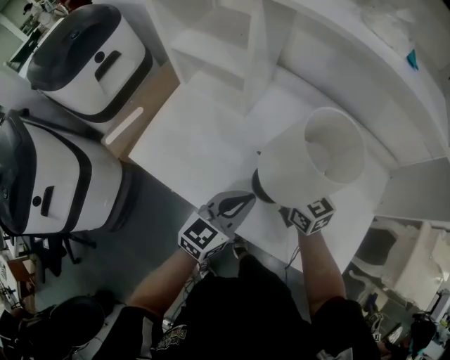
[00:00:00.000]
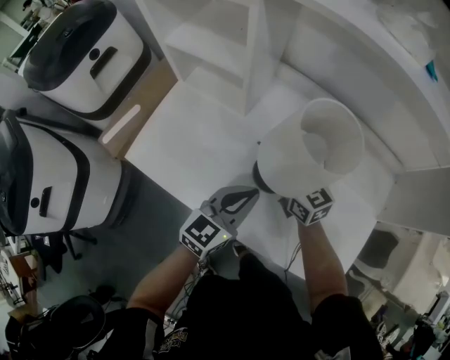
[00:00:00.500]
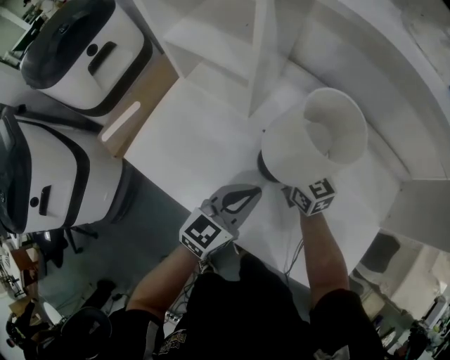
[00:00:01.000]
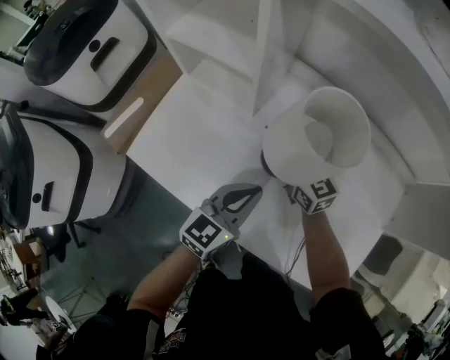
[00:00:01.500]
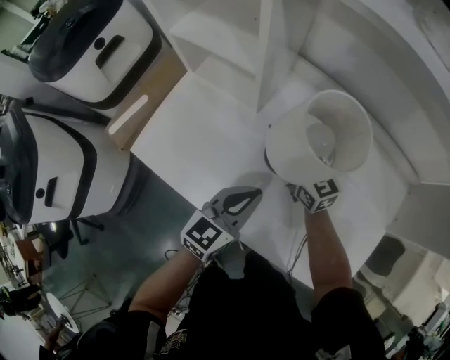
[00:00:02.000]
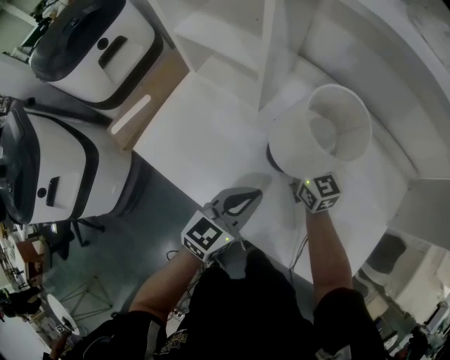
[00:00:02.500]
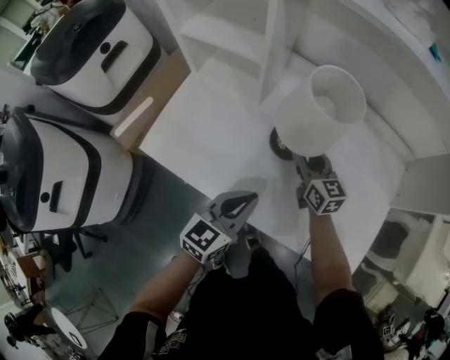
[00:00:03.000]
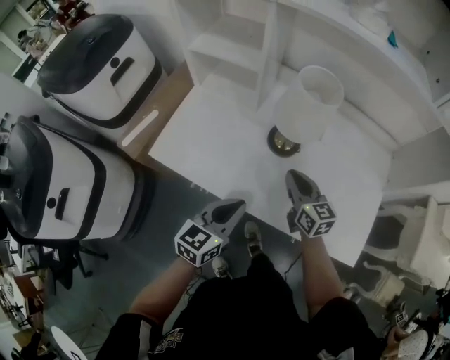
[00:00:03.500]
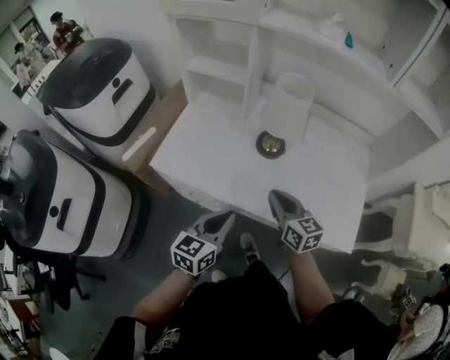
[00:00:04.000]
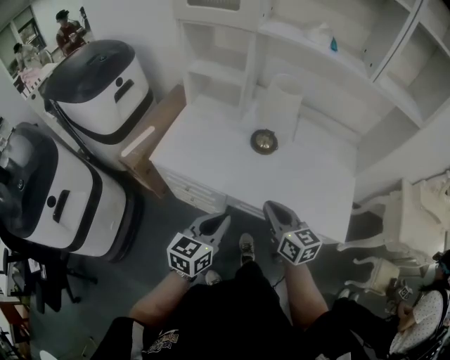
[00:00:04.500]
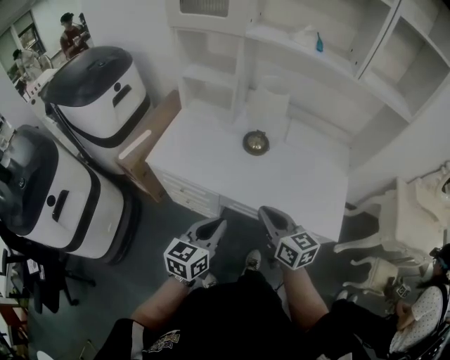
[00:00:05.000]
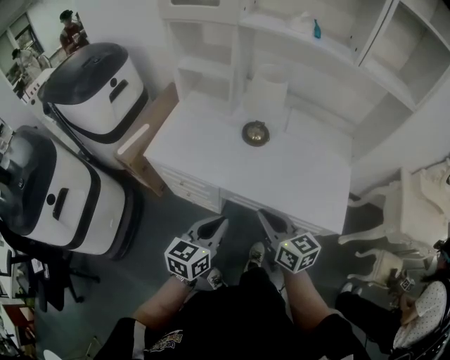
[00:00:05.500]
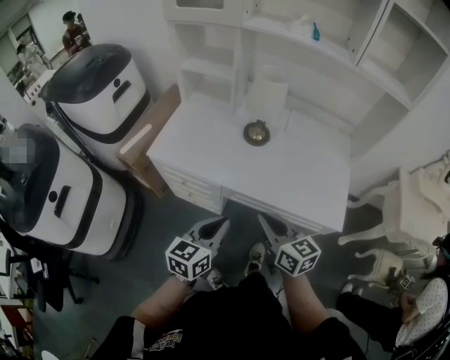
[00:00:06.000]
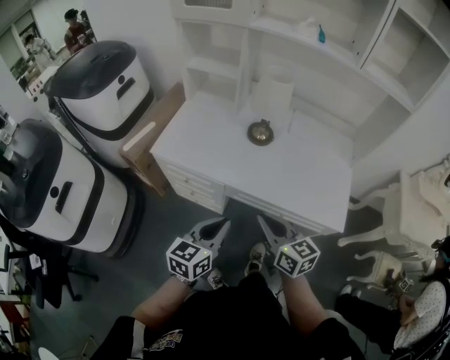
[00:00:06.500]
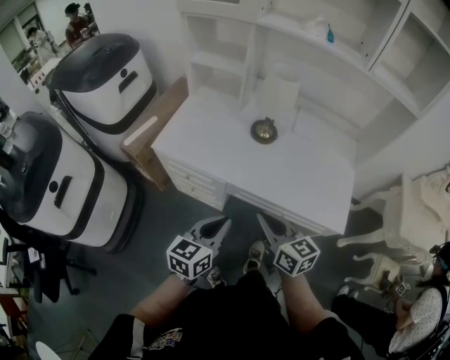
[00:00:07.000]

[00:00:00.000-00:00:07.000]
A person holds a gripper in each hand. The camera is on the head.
00:00:00.000 to 00:00:02.000: The left gripper moves forward, about 5 cm. The right gripper travels forward and downward by some 10 cm.
00:00:02.000 to 00:00:03.500: The right gripper travels backward by about 20 cm; the left gripper shifts some 15 cm backward and to the left.
00:00:03.500 to 00:00:05.000: The right gripper goes some 25 cm backward and upward. The left gripper travels backward by some 15 cm.
00:00:05.000 to 00:00:07.000: The right gripper shifts by some 5 cm.

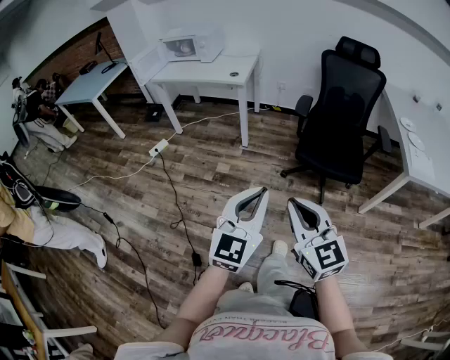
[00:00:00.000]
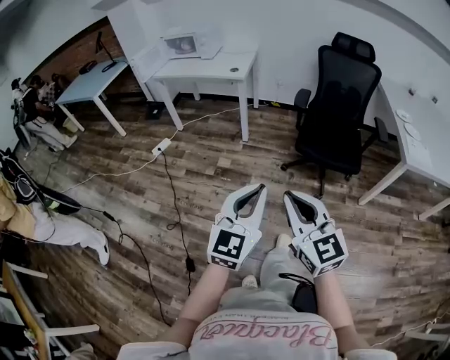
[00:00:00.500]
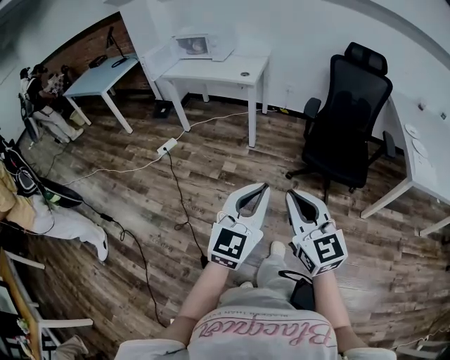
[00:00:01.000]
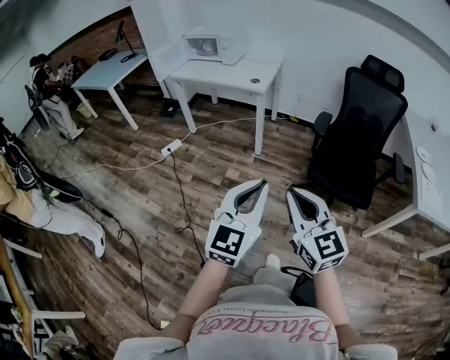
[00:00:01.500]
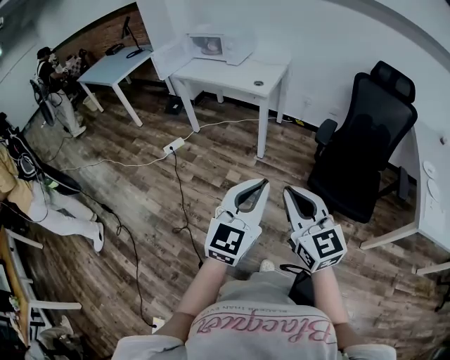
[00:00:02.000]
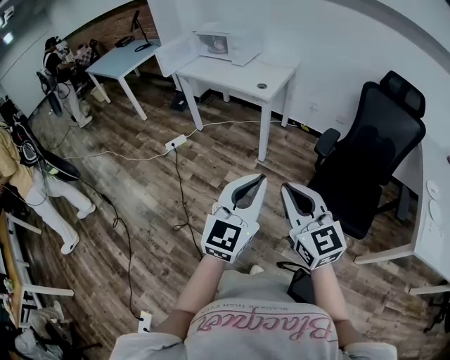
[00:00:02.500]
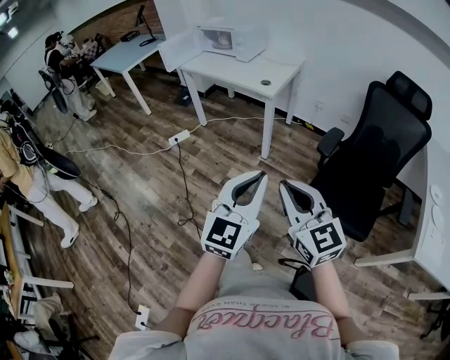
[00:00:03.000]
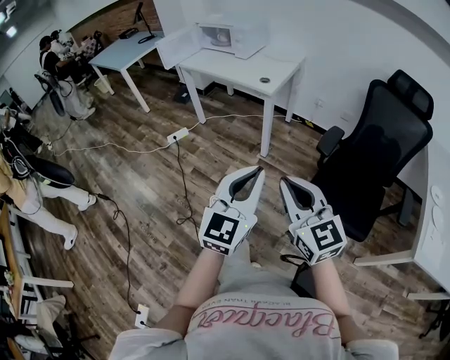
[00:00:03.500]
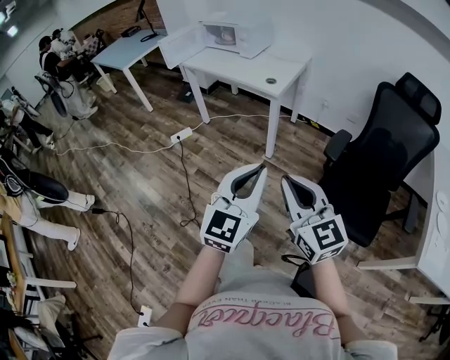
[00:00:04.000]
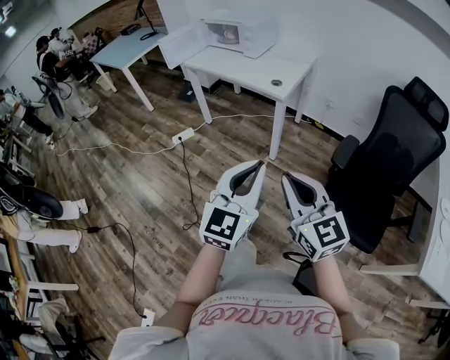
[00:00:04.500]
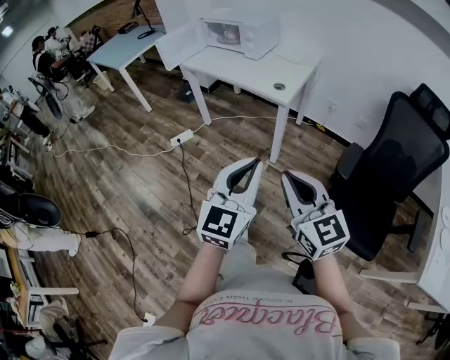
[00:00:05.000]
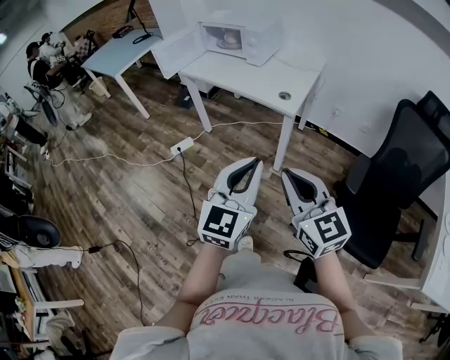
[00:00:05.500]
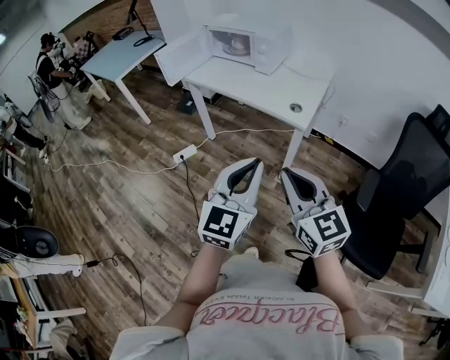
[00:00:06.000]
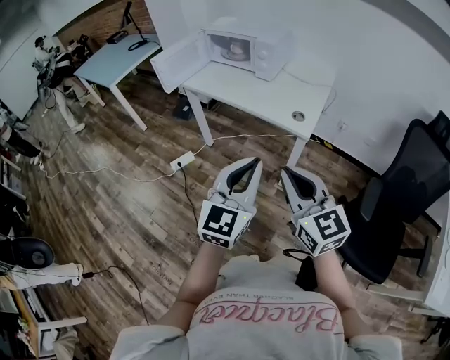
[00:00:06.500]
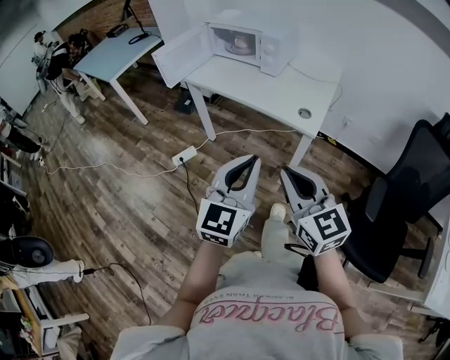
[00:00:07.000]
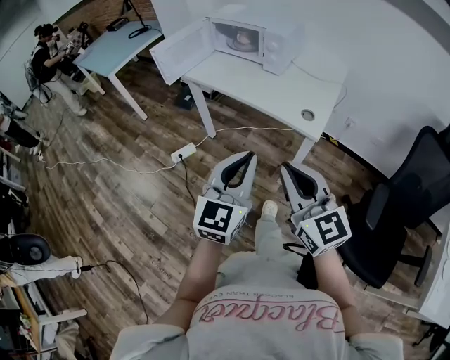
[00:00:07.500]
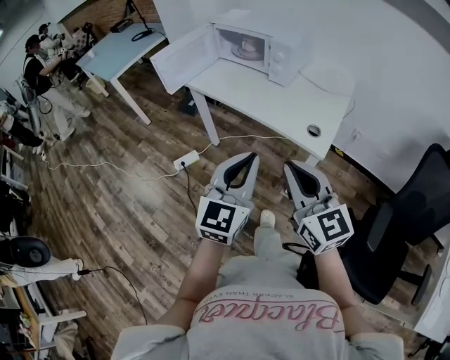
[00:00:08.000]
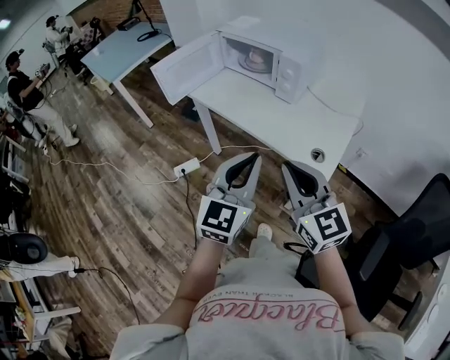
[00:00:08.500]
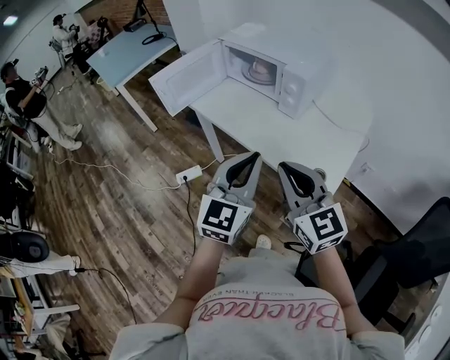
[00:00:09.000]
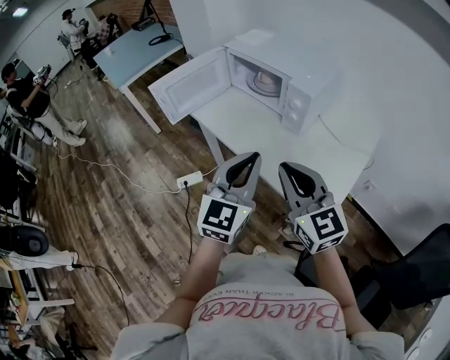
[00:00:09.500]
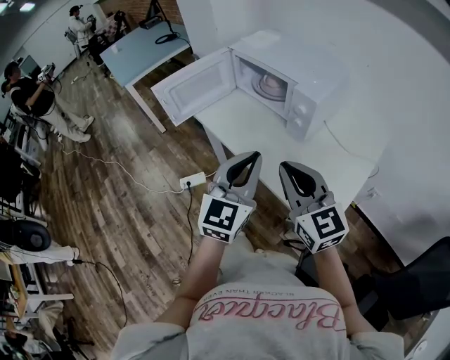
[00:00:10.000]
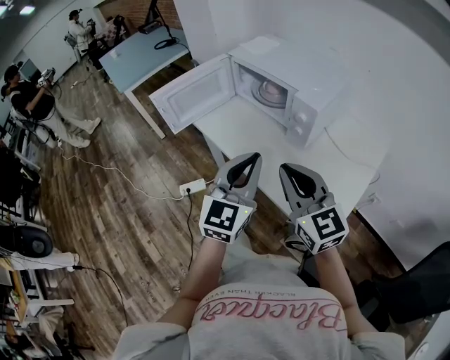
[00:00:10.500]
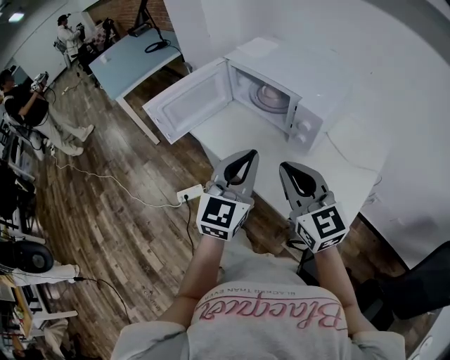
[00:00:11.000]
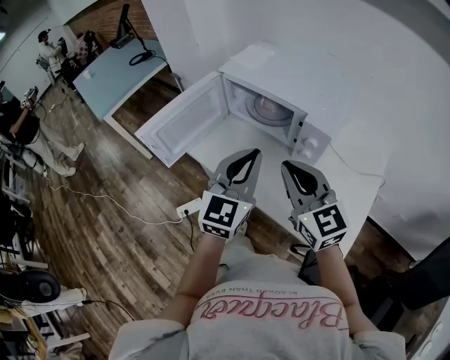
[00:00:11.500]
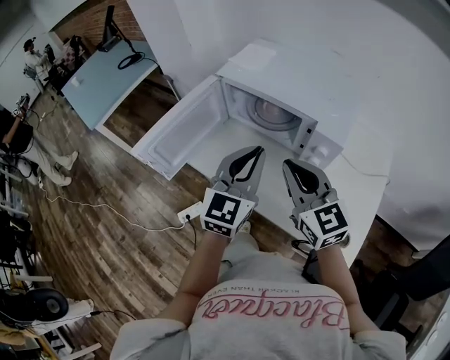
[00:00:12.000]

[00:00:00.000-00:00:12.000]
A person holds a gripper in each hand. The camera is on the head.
00:00:00.000 to 00:00:02.000: Both grippers move forward, approximately 15 cm.
00:00:02.000 to 00:00:04.000: The grippers both shift forward by some 10 cm.
00:00:04.000 to 00:00:06.000: Both grippers travel together forward and to the left, roughly 30 cm.
00:00:06.000 to 00:00:08.000: Both grippers move forward, some 20 cm.
00:00:08.000 to 00:00:10.000: The grippers both shift forward by roughly 25 cm.
00:00:10.000 to 00:00:12.000: The grippers both shift forward by about 20 cm.

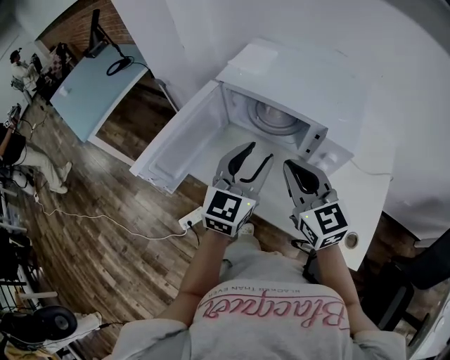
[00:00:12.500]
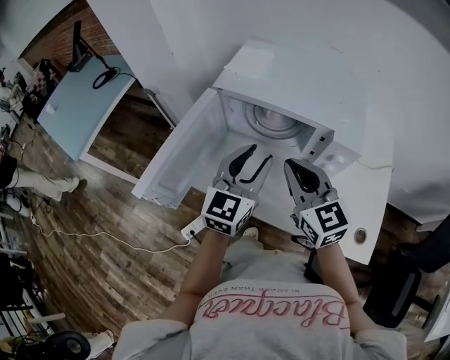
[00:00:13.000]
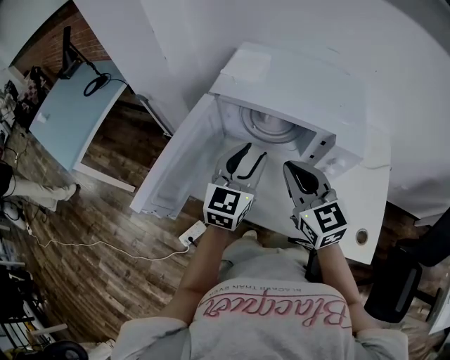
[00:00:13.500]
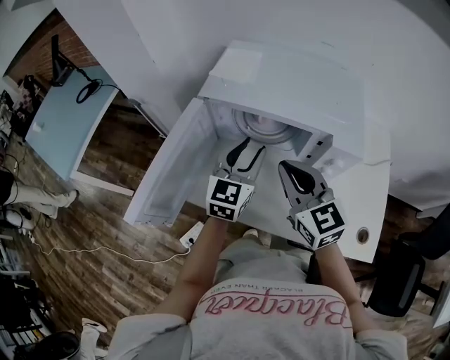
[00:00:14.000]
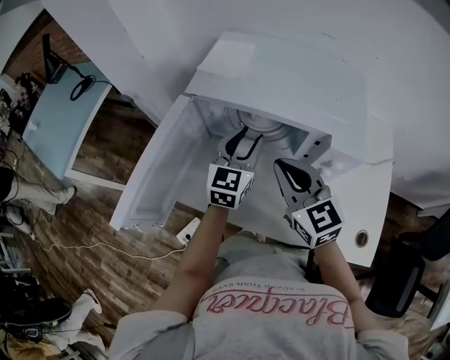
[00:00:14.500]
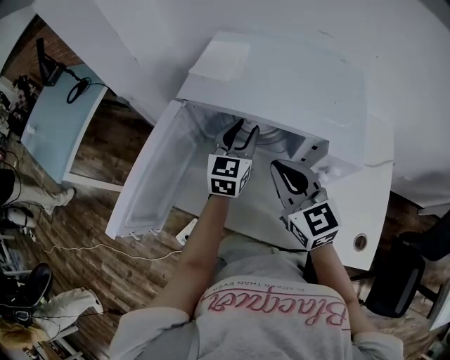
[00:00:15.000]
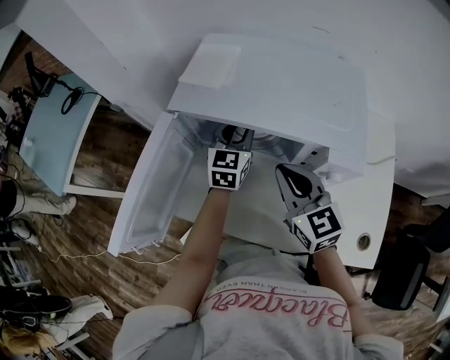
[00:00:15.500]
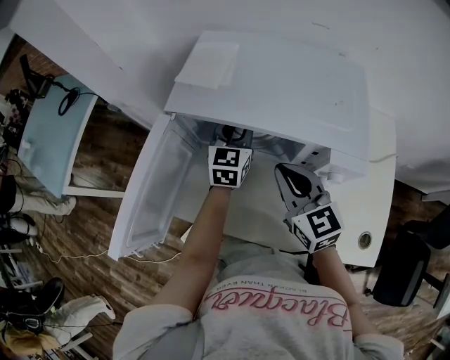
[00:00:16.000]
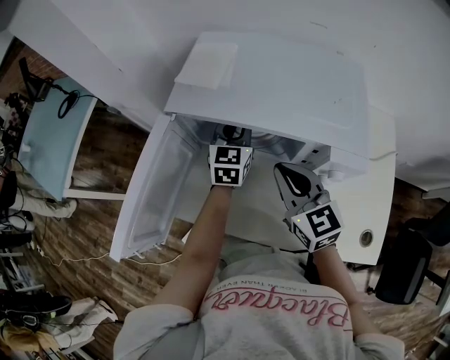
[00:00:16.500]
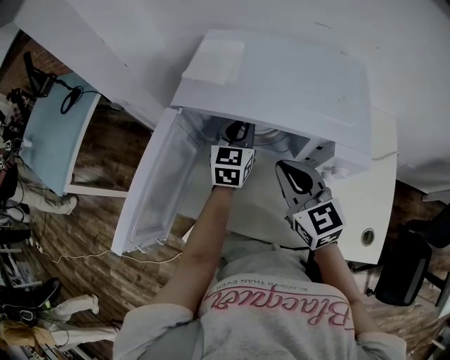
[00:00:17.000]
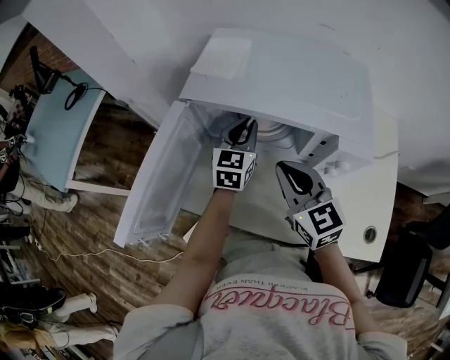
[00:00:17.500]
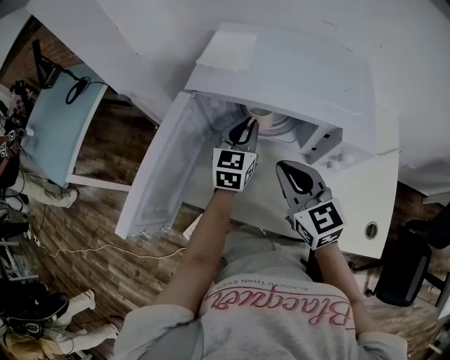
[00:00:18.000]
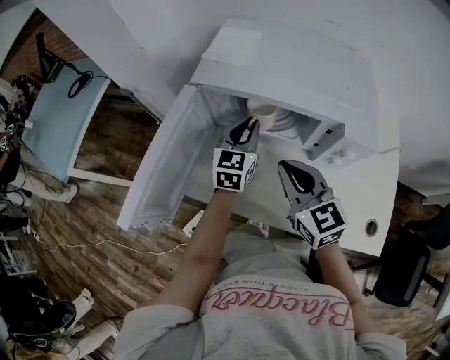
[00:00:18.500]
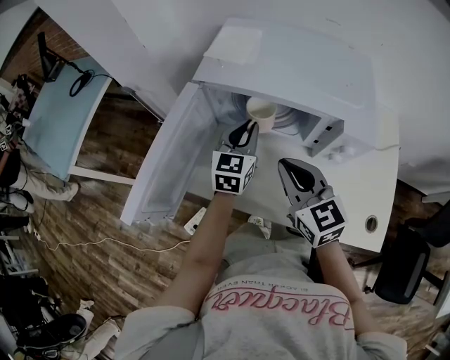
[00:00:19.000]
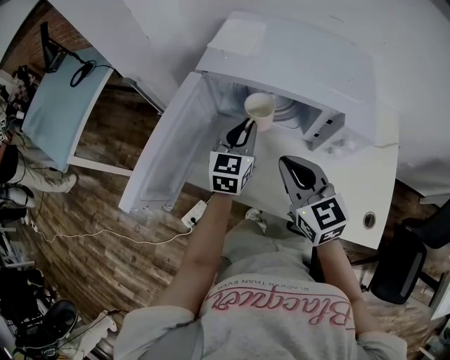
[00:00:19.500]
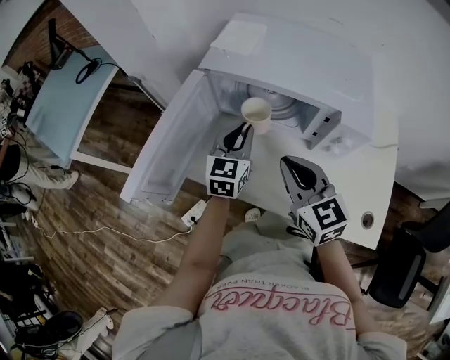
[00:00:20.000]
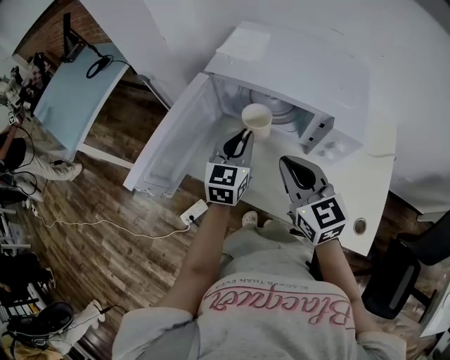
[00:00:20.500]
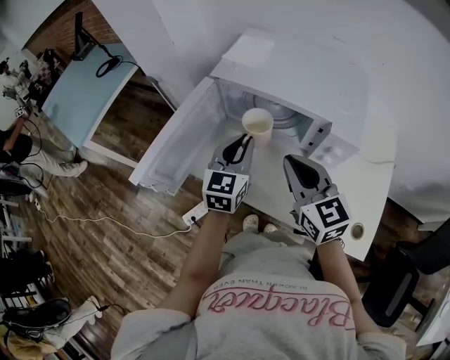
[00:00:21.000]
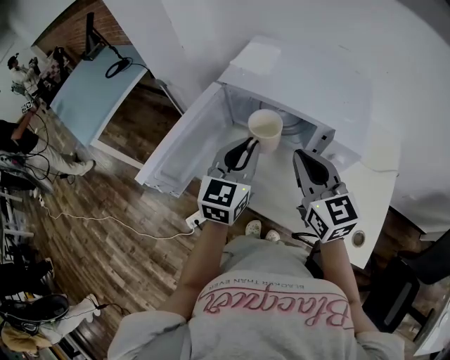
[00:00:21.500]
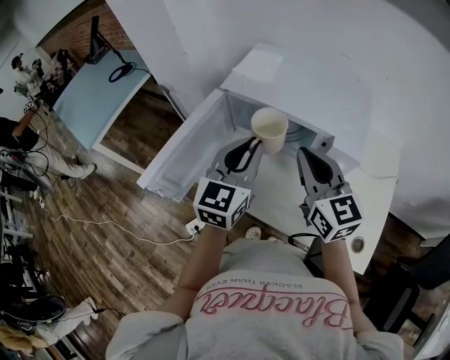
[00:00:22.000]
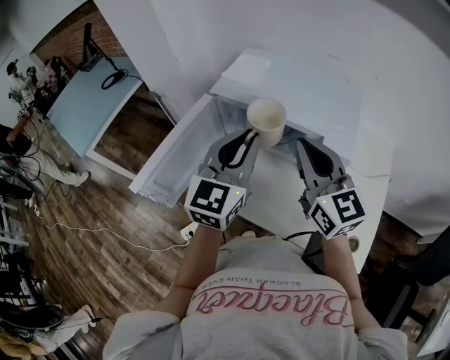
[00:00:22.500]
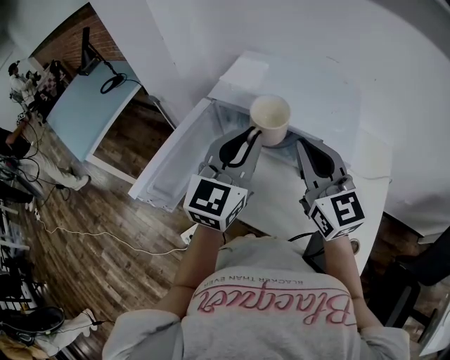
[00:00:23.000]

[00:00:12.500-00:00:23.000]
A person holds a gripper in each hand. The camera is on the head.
00:00:12.500 to 00:00:14.500: The right gripper is displaced forward and downward by some 10 cm. Meanwhile the left gripper travels forward and downward by roughly 15 cm.
00:00:14.500 to 00:00:16.500: The left gripper is displaced forward by approximately 10 cm, and closes.
00:00:16.500 to 00:00:19.000: The left gripper travels backward by some 10 cm, while the right gripper travels backward by some 5 cm.
00:00:19.000 to 00:00:21.000: The left gripper goes roughly 10 cm backward and upward. Meanwhile the right gripper heads upward, covering about 5 cm.
00:00:21.000 to 00:00:23.000: The left gripper travels upward by some 15 cm. Meanwhile the right gripper goes some 10 cm upward.
